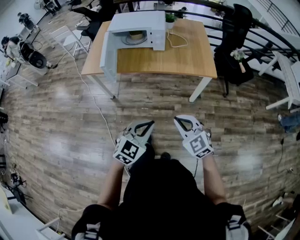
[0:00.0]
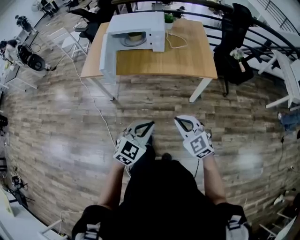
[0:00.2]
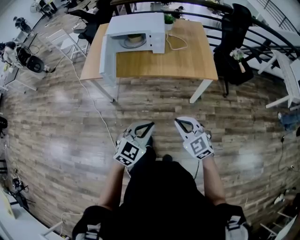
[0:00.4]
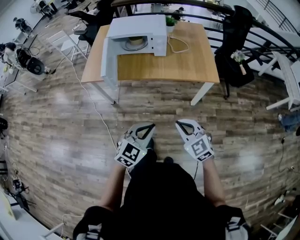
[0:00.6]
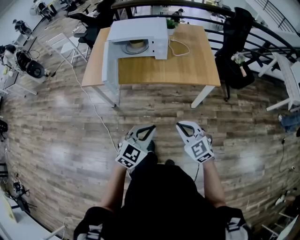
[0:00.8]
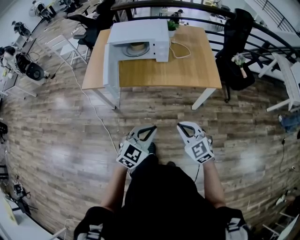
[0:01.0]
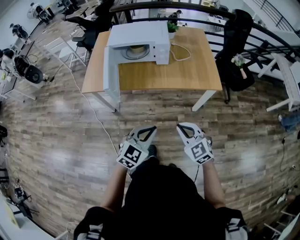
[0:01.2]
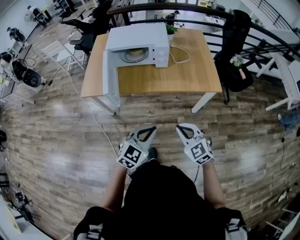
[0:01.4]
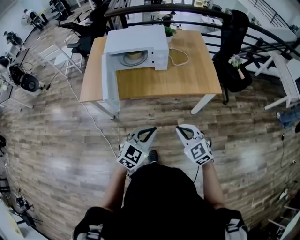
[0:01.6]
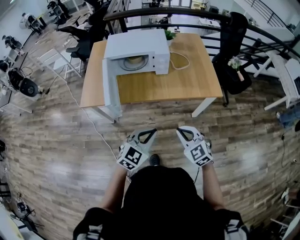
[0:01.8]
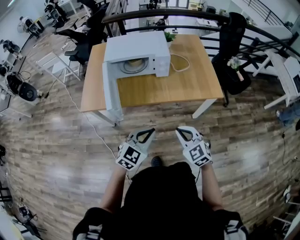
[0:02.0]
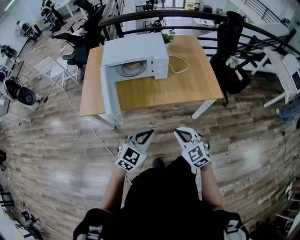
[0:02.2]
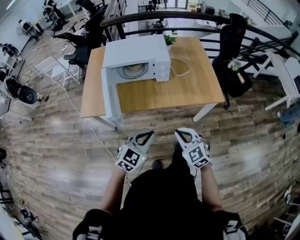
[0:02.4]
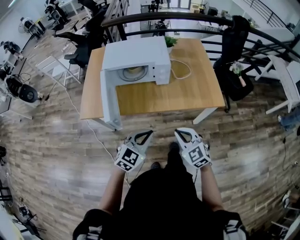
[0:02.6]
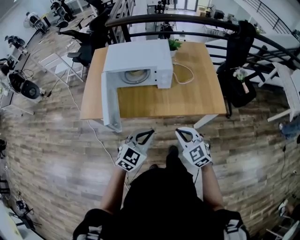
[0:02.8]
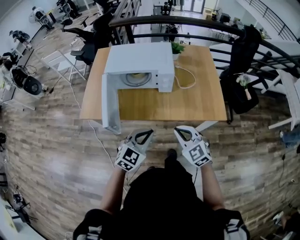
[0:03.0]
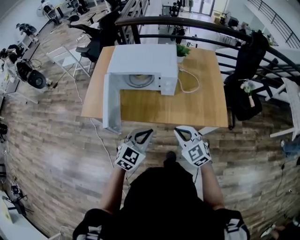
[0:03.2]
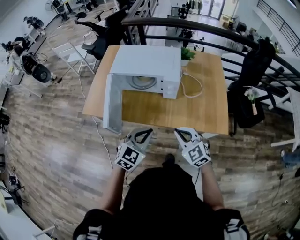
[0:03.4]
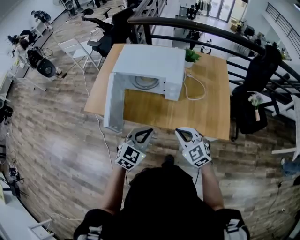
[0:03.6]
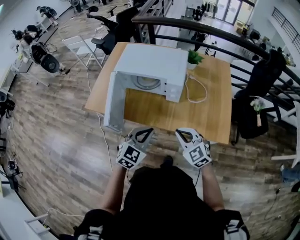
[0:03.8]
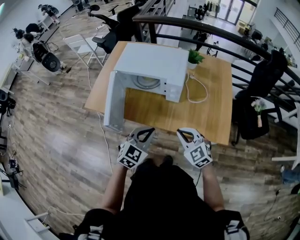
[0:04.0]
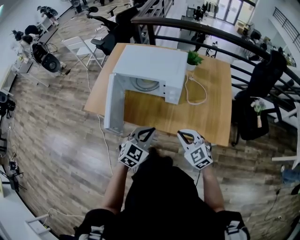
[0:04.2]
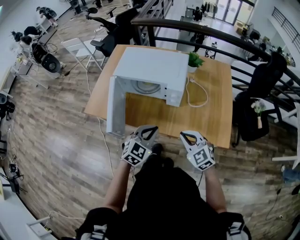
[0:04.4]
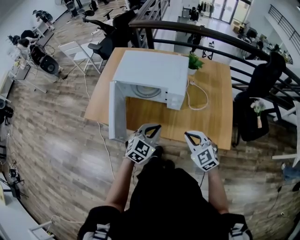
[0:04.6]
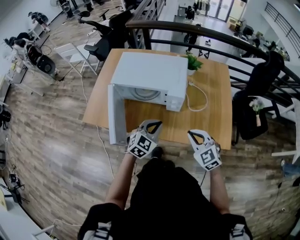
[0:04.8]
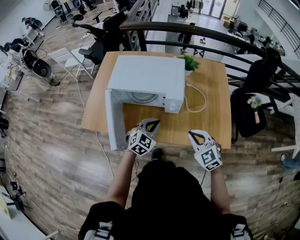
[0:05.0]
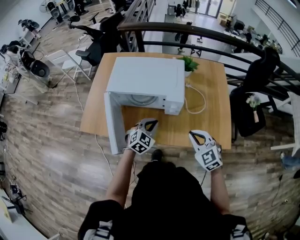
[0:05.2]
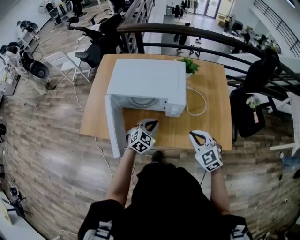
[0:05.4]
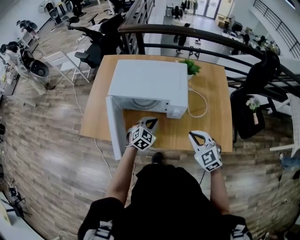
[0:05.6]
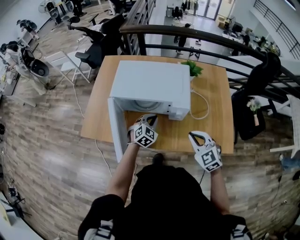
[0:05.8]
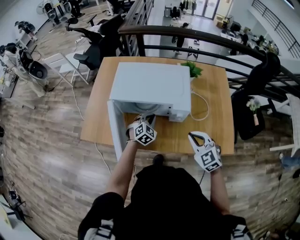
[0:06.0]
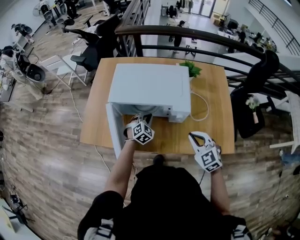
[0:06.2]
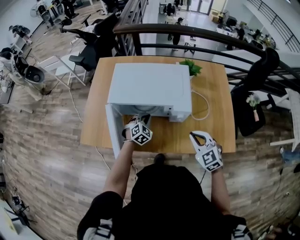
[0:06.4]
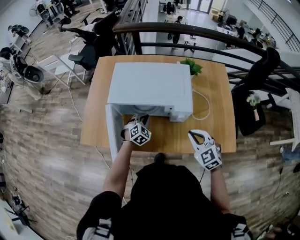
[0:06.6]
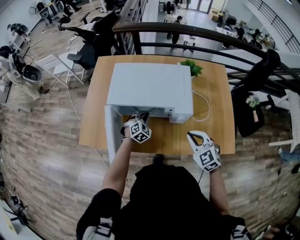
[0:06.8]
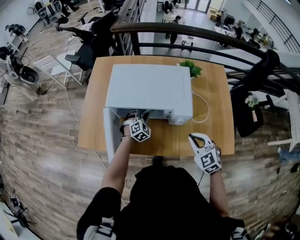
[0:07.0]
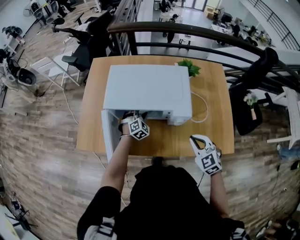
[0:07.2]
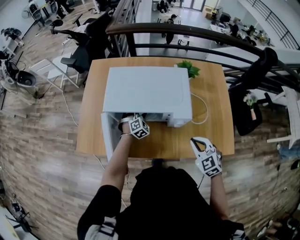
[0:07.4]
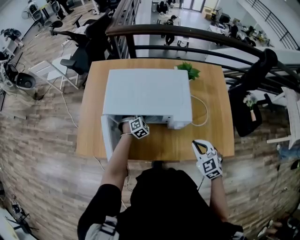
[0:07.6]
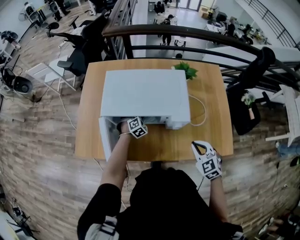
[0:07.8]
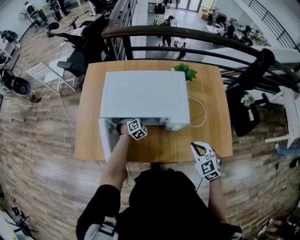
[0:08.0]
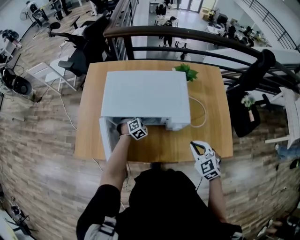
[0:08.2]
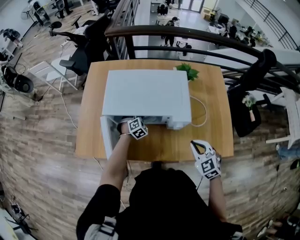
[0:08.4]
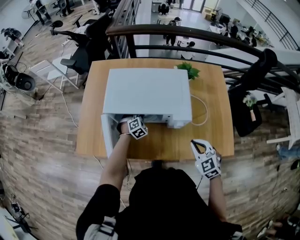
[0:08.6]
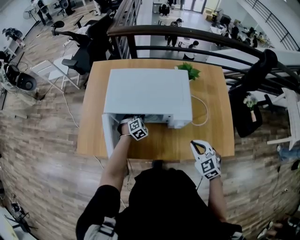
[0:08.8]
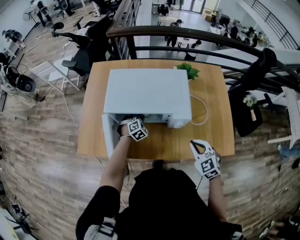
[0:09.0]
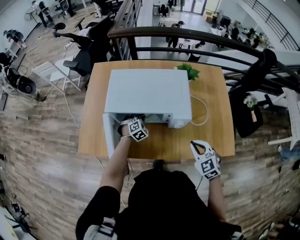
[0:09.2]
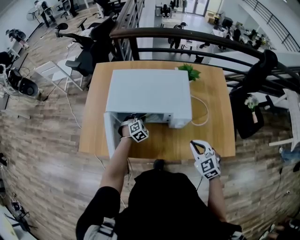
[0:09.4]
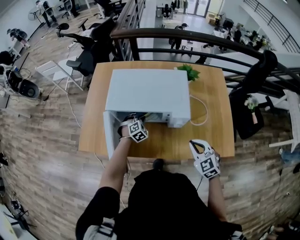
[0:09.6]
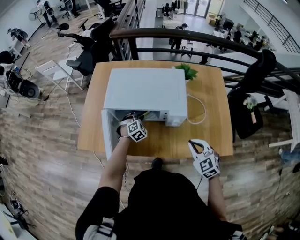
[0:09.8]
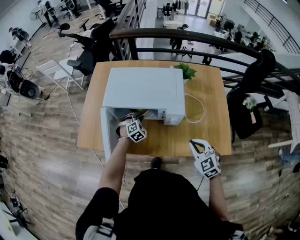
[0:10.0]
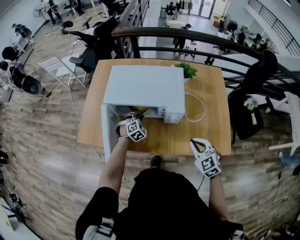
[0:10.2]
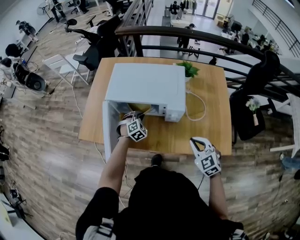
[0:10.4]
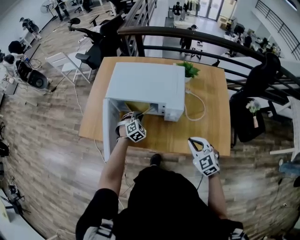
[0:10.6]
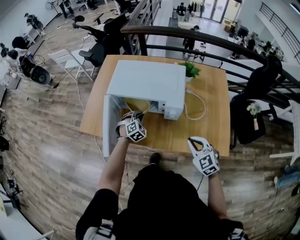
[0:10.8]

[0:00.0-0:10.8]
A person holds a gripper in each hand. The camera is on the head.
0:00.0 to 0:01.6: The grippers both shift forward and to the left by about 15 cm.
0:01.6 to 0:03.0: The two grippers go about 15 cm forward.
0:03.0 to 0:04.6: The right gripper shifts some 15 cm forward and to the right; the left gripper goes some 15 cm forward.
0:04.6 to 0:06.2: The left gripper shifts about 30 cm forward, downward and to the left, and turns by roughly 20 degrees. Meanwhile the right gripper goes about 10 cm forward.
0:06.2 to 0:07.8: The left gripper is displaced forward and downward by roughly 15 cm, and opens its fingers. The right gripper ends up about 5 cm from where it was.
0:07.8 to 0:09.2: The left gripper closes its fingers.
0:09.2 to 0:10.8: The left gripper is displaced backward and upward by some 10 cm. Meanwhile the right gripper is displaced backward by roughly 5 cm.

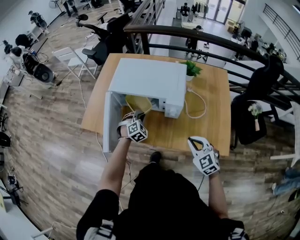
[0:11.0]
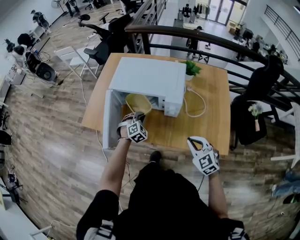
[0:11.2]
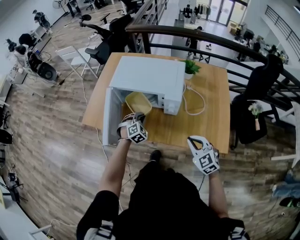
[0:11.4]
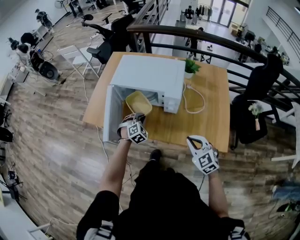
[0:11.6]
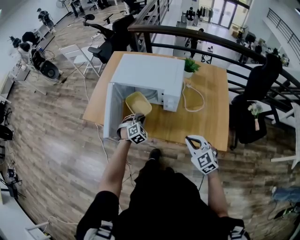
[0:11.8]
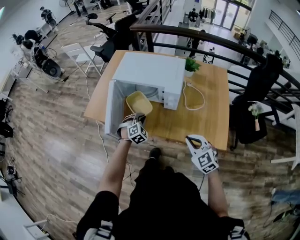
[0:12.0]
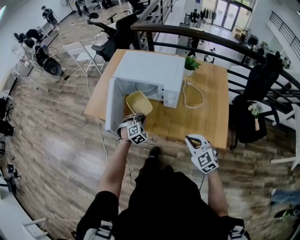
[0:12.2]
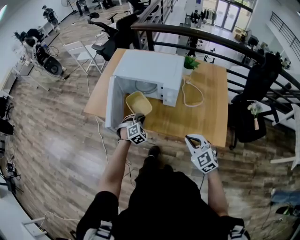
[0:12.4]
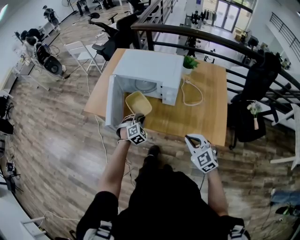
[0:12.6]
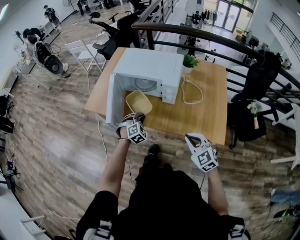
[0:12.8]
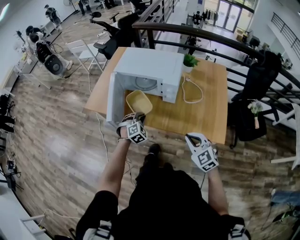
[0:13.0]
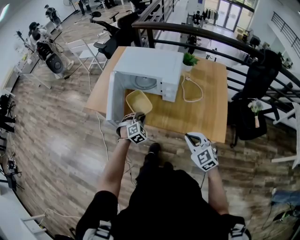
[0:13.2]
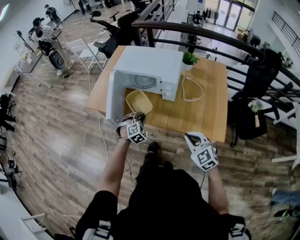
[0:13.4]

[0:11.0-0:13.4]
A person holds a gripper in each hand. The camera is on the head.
0:11.0 to 0:12.2: The grippers both shift backward by some 10 cm.
0:12.2 to 0:13.4: The left gripper shifts about 5 cm backward.

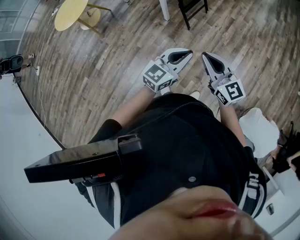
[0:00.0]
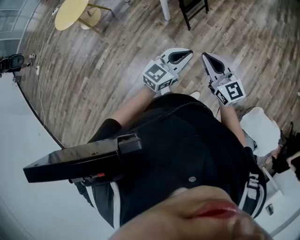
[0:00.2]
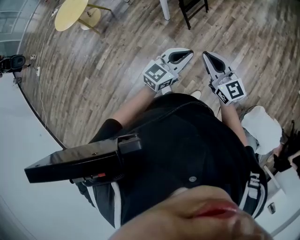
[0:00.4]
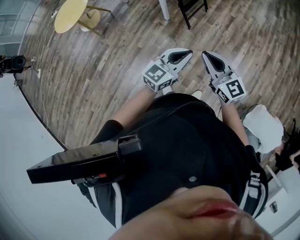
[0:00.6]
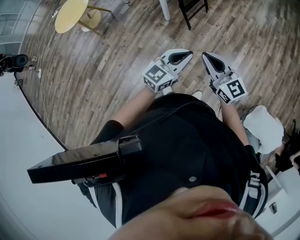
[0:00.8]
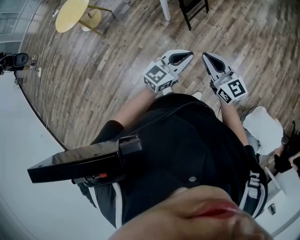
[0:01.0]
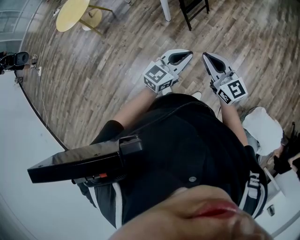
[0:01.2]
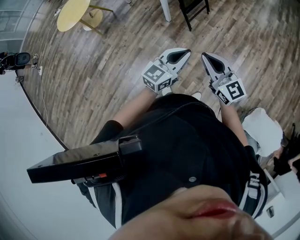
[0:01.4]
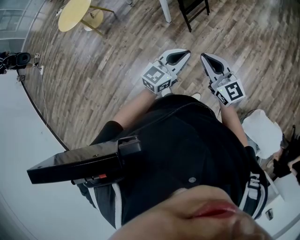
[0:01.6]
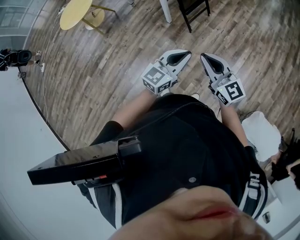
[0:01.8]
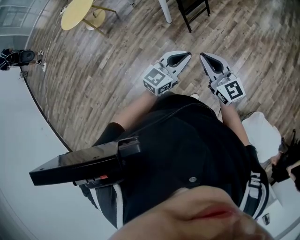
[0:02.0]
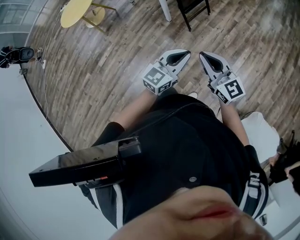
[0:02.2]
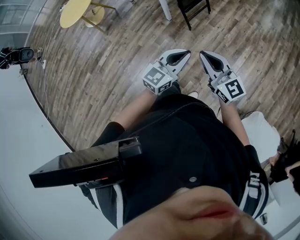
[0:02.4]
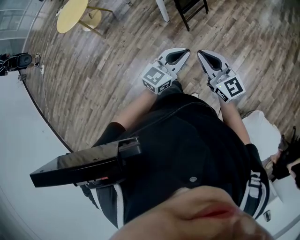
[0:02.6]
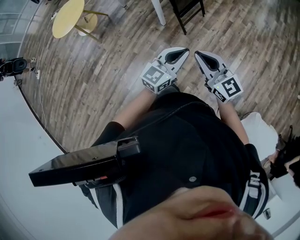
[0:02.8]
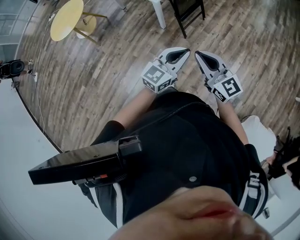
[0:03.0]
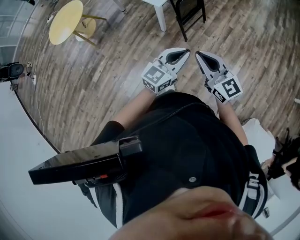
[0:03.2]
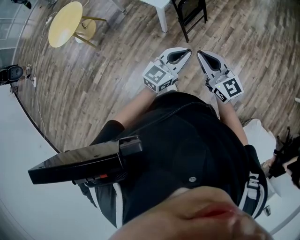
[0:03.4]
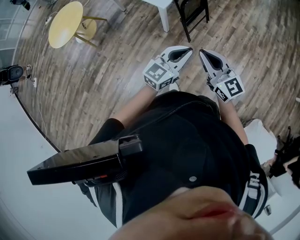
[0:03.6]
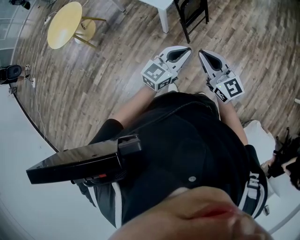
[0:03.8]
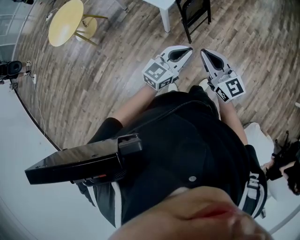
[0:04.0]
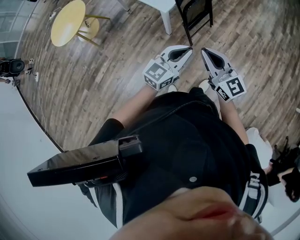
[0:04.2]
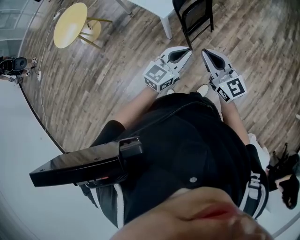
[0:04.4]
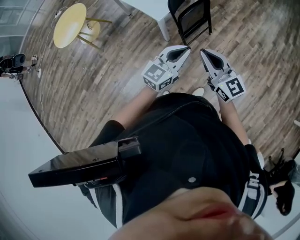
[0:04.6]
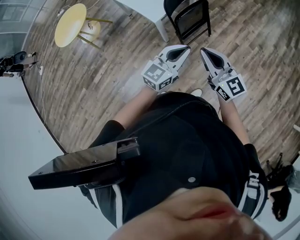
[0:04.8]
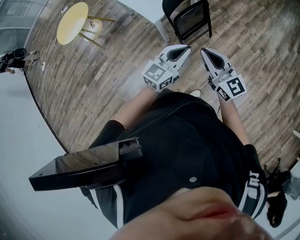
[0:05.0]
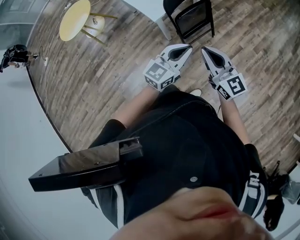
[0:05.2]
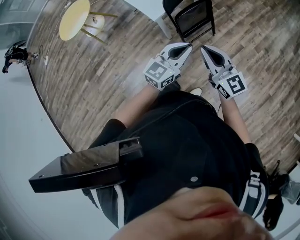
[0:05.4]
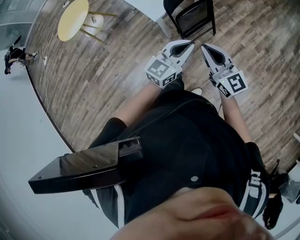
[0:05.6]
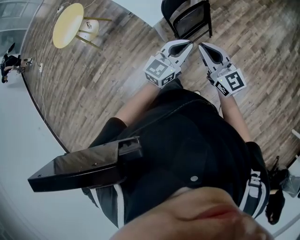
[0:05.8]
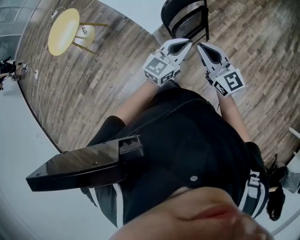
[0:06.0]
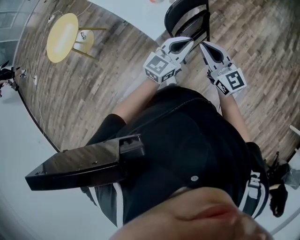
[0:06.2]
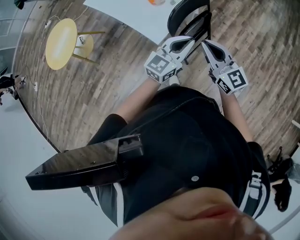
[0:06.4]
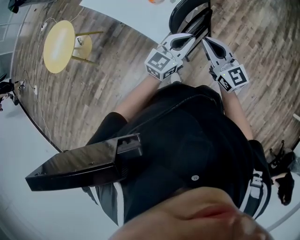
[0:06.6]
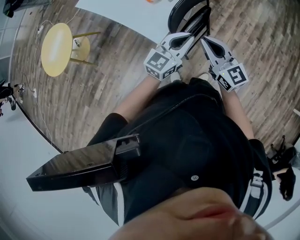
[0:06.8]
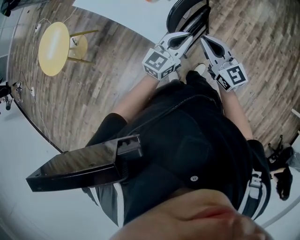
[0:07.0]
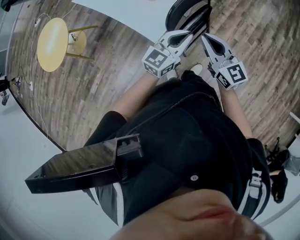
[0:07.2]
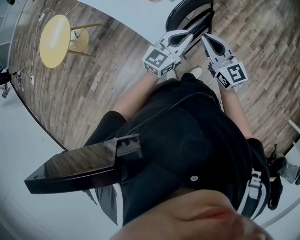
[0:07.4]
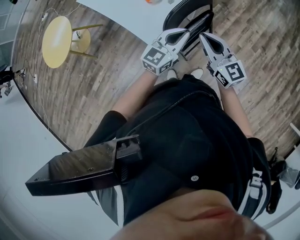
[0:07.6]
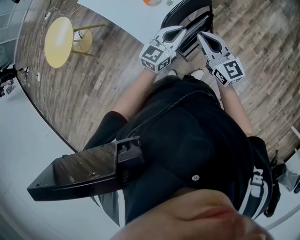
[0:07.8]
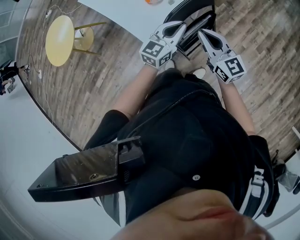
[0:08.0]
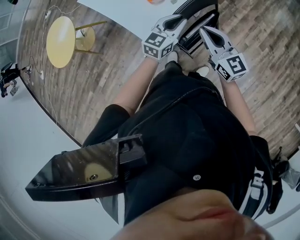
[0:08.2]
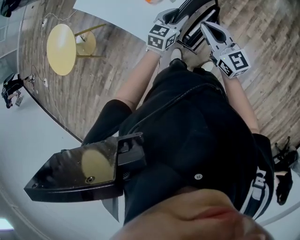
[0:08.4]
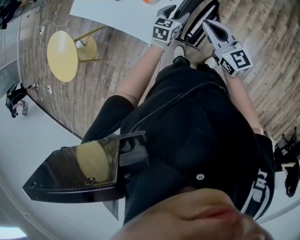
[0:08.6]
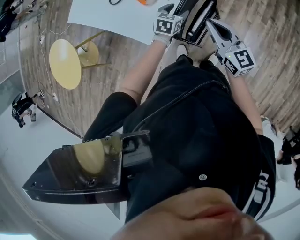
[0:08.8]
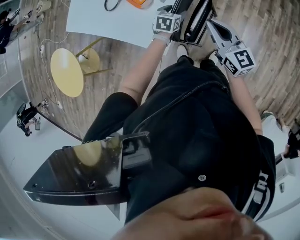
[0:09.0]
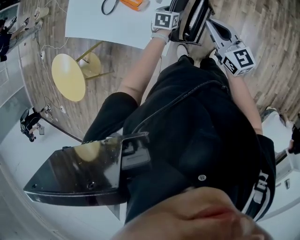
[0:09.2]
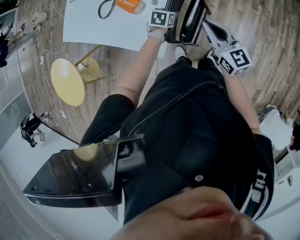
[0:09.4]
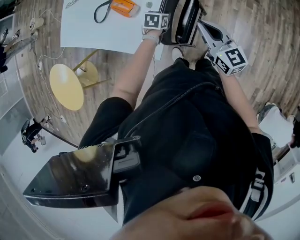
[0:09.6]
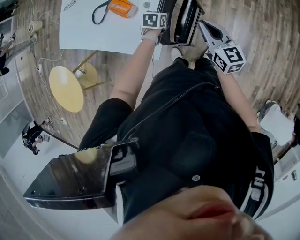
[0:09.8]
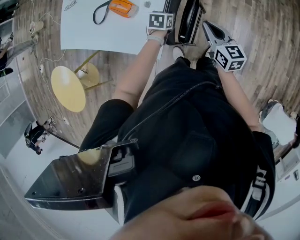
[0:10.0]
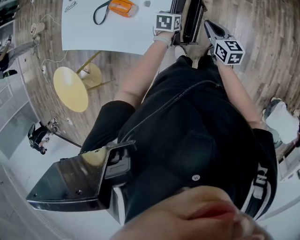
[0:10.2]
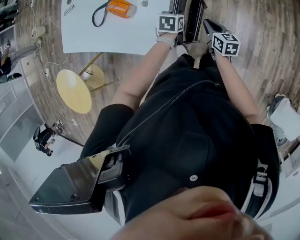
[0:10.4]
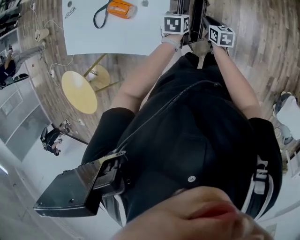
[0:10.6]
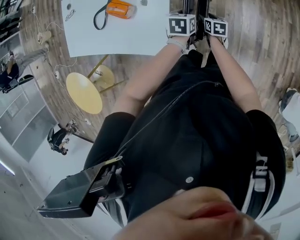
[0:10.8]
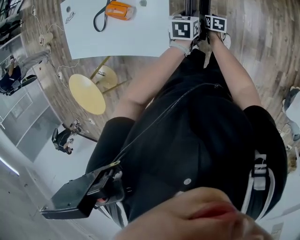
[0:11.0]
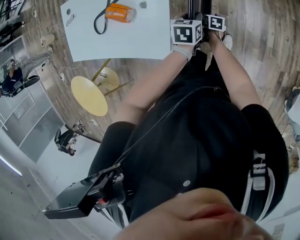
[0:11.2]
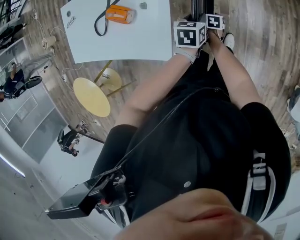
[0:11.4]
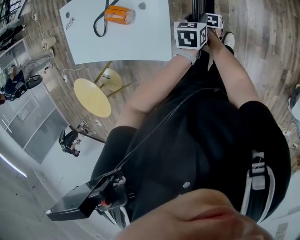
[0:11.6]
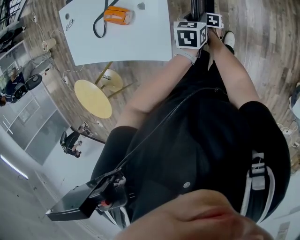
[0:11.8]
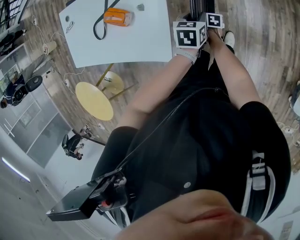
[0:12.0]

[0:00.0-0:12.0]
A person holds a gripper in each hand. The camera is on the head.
0:00.0 to 0:01.6: The grippers stay close to where they were, moving slightly.
0:01.6 to 0:03.0: Both grippers move forward, some 10 cm.
0:03.0 to 0:04.4: The two grippers go some 20 cm forward.
0:04.4 to 0:06.0: Both grippers travel together forward and to the right, roughly 20 cm.
0:06.0 to 0:07.6: The grippers both shift forward by roughly 20 cm.
0:07.6 to 0:09.0: The right gripper goes approximately 10 cm forward, and rotates some 20 degrees. The left gripper moves downward and forward, some 25 cm, tips its fingers downward by about 40 degrees, and opens.
0:09.0 to 0:10.4: The right gripper heads downward and to the right, covering roughly 20 cm, and turns by roughly 40 degrees. The left gripper travels to the right by roughly 10 cm, and closes.
0:10.4 to 0:12.0: The right gripper shifts some 25 cm downward, swivels approximately 30 degrees, and opens up; the left gripper heads to the right, covering some 10 cm.
